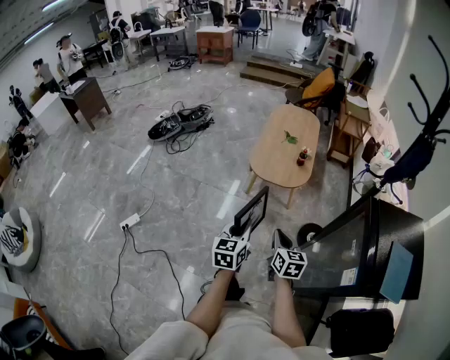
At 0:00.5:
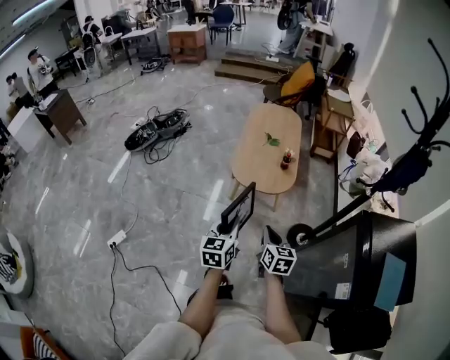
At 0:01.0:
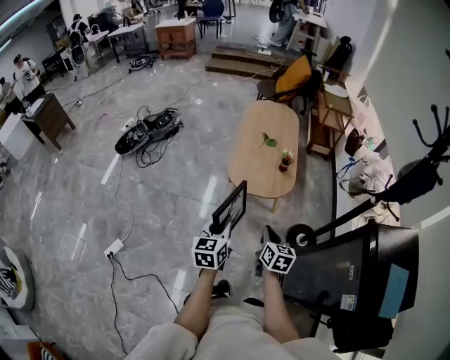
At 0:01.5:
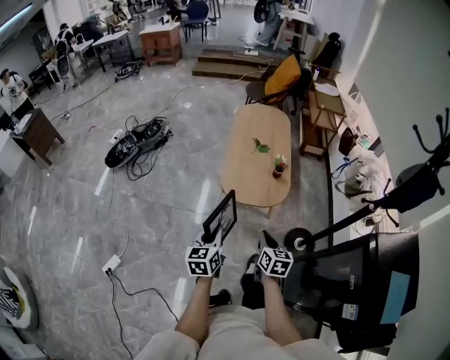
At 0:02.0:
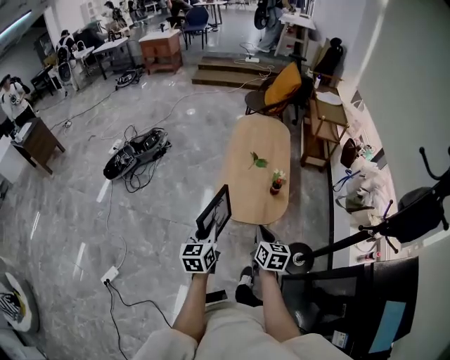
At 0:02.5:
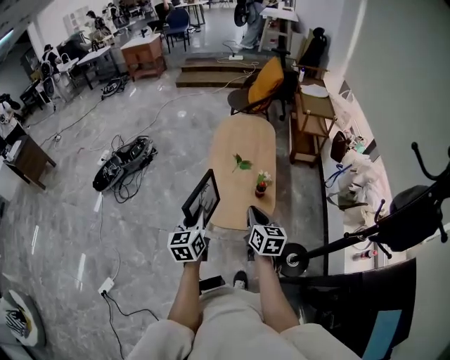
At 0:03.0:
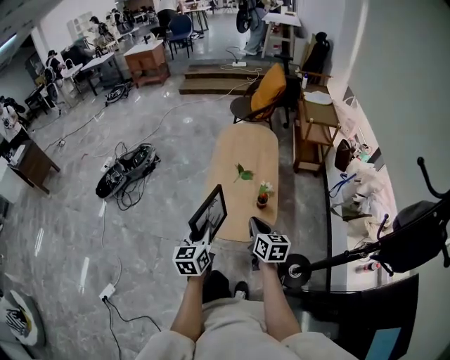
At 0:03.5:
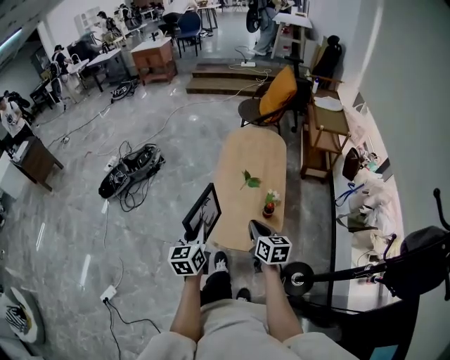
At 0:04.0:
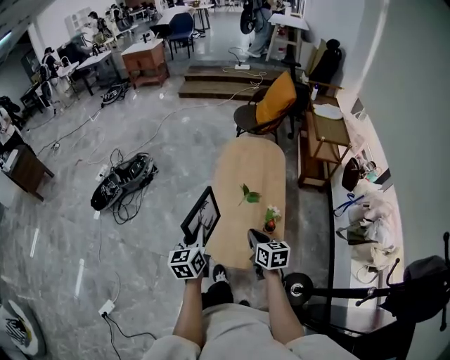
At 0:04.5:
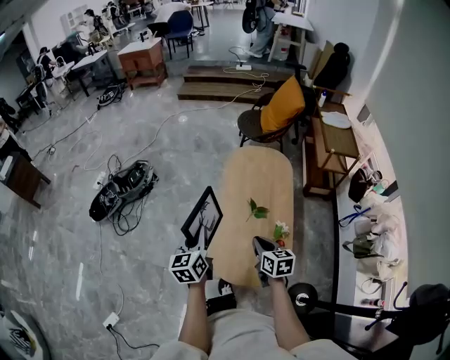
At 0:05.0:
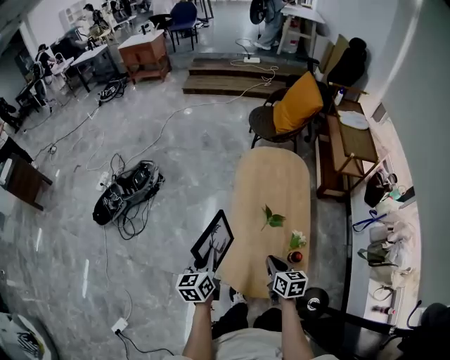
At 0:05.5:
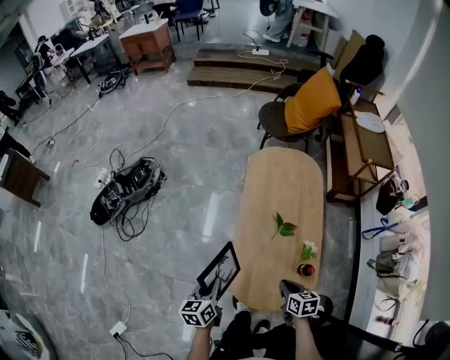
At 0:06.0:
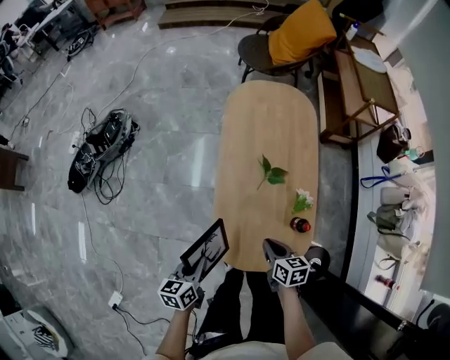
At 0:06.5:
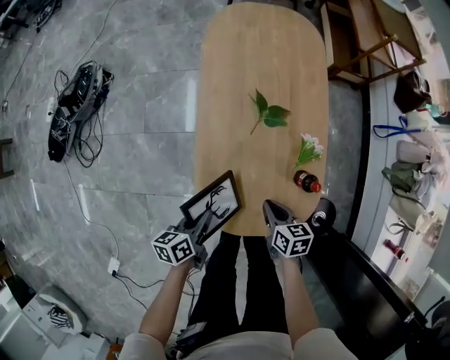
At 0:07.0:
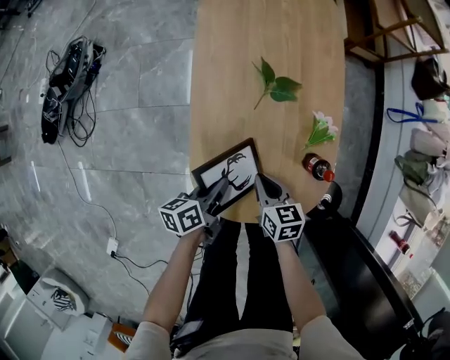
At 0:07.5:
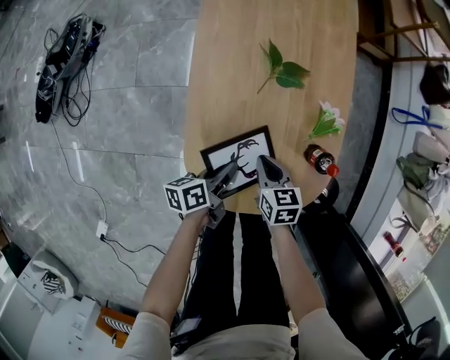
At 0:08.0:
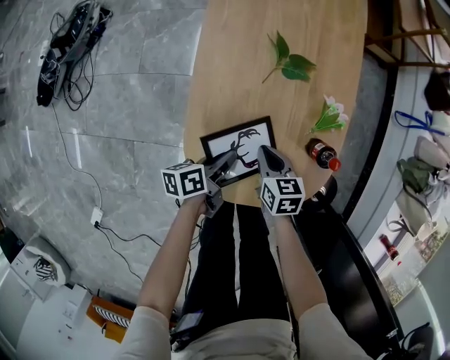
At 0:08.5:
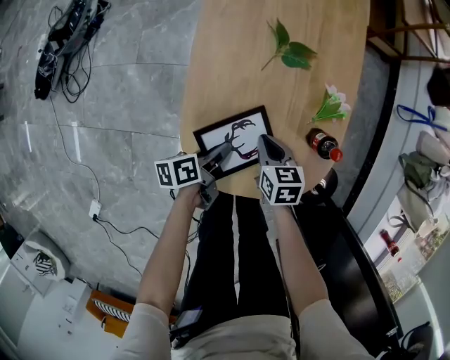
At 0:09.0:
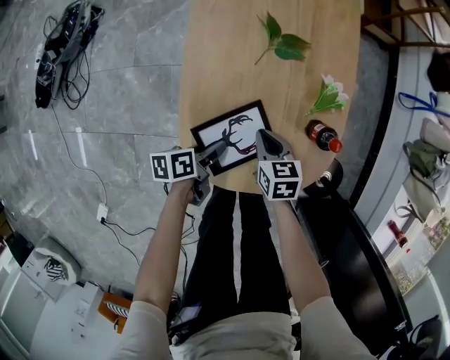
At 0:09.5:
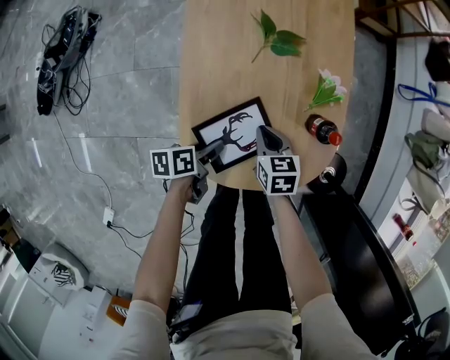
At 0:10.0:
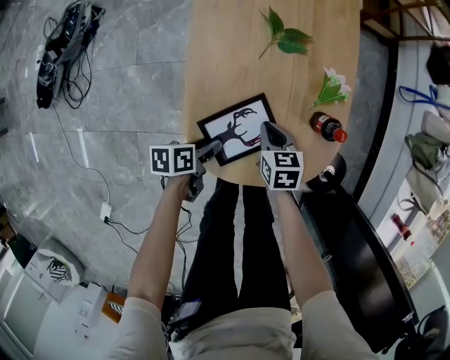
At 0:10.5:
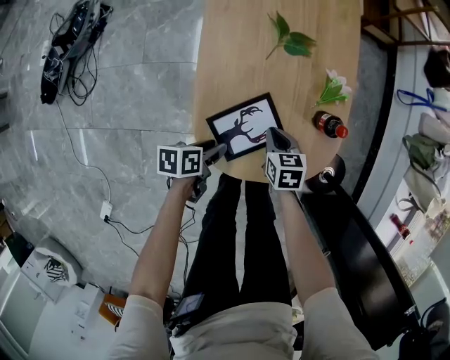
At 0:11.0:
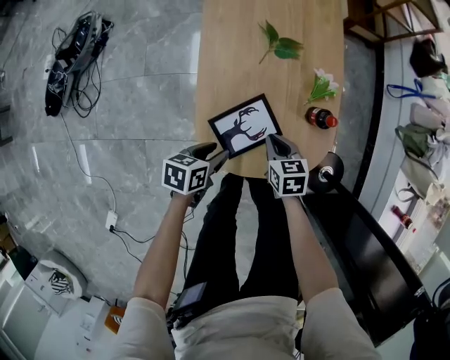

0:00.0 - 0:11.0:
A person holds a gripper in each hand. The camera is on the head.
0:00.0 - 0:02.0: The grippers both shift forward by roughly 40 cm.
0:02.0 - 0:03.5: Both grippers travel together forward, roughly 20 cm.
0:03.5 - 0:05.5: Both grippers travel together forward and downward, roughly 30 cm. The right gripper rotates roughly 30 degrees; the left gripper rotates about 20 degrees.
0:05.5 - 0:07.5: The left gripper travels downward and to the right by about 40 cm, and turns by about 40 degrees. The right gripper moves downward, approximately 30 cm.
0:07.5 - 0:09.0: The left gripper opens up.
0:09.0 - 0:11.0: Both grippers travel together upward and backward, approximately 10 cm. The left gripper swivels about 30 degrees.

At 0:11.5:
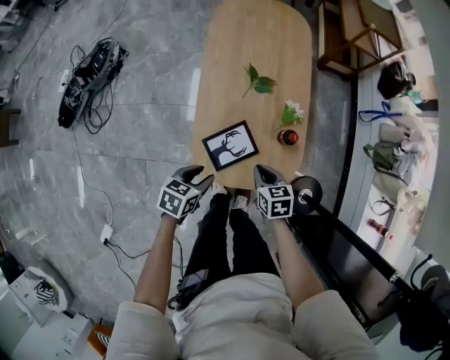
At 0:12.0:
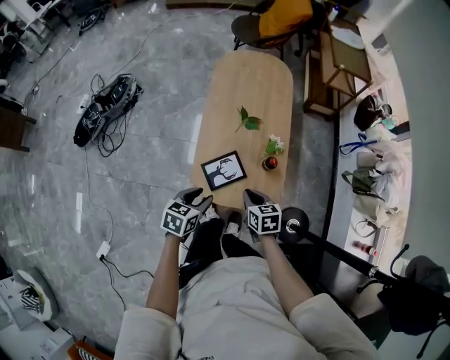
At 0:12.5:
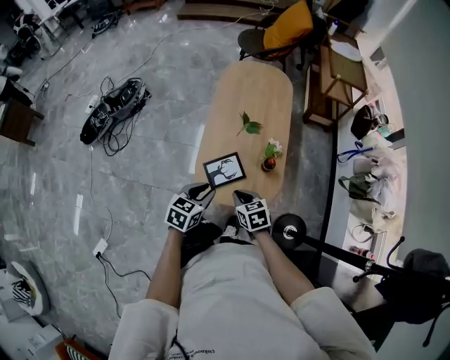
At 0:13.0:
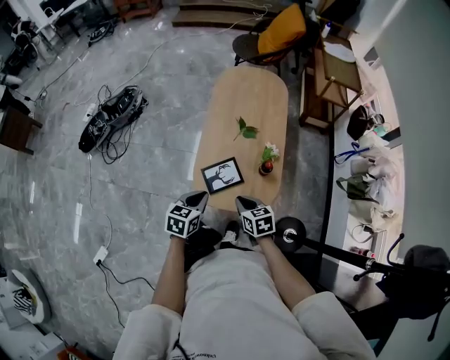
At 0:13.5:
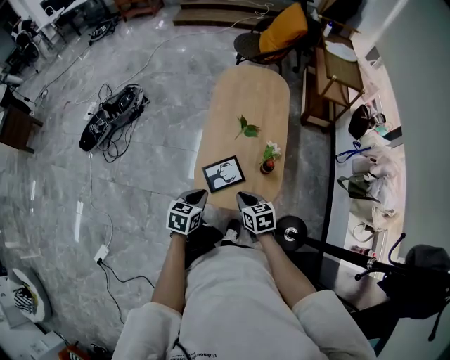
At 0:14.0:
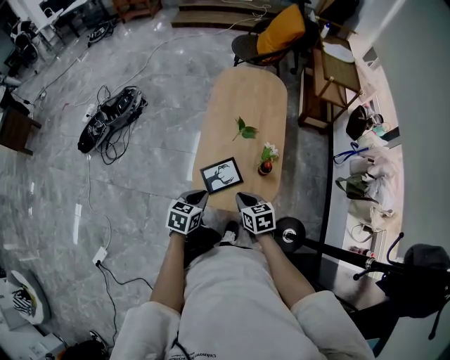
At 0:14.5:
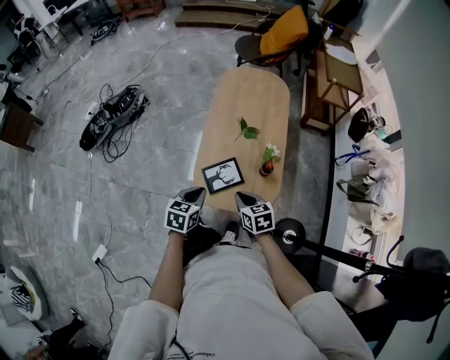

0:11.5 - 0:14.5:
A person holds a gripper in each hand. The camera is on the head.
0:11.5 - 0:13.0: Both grippers travel together upward and backward, about 20 cm. The left gripper rotates about 20 degrees, and closes up.
0:13.0 - 0:14.5: The grippers stay close to where they were, moving slightly.

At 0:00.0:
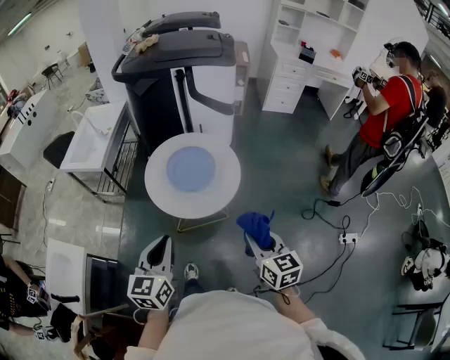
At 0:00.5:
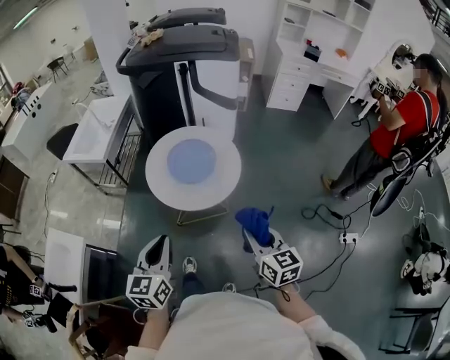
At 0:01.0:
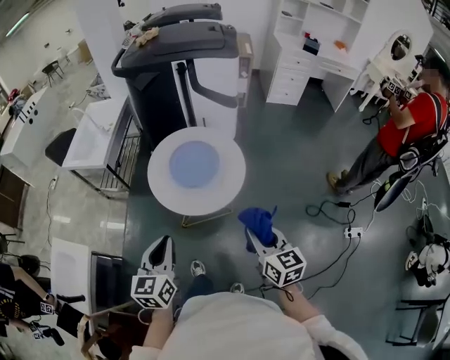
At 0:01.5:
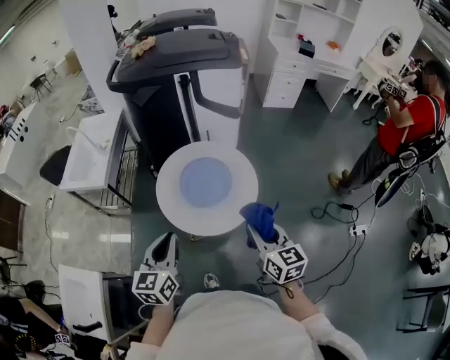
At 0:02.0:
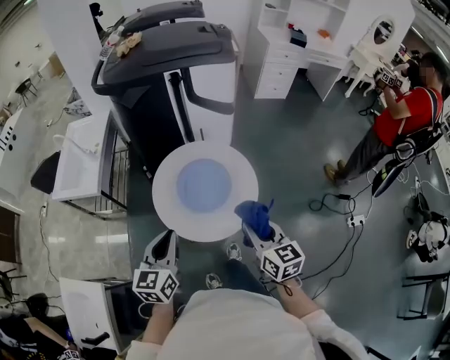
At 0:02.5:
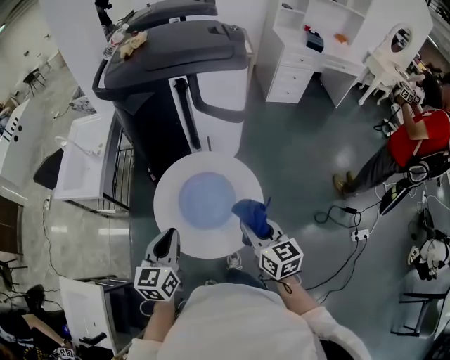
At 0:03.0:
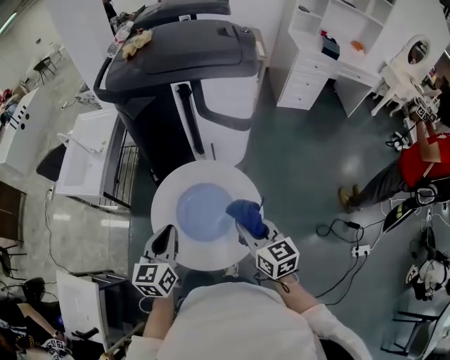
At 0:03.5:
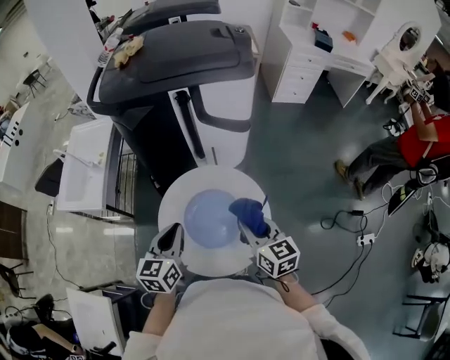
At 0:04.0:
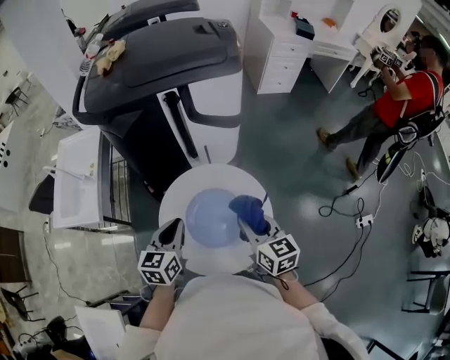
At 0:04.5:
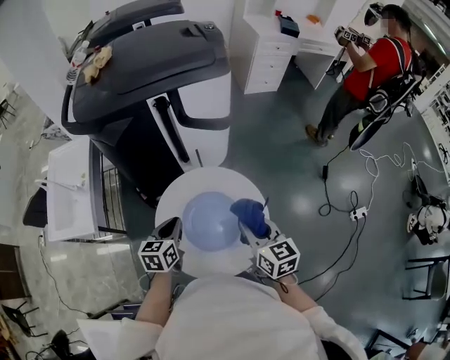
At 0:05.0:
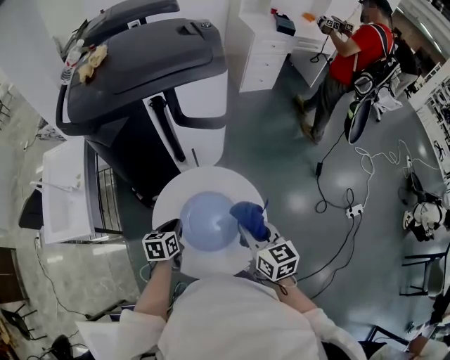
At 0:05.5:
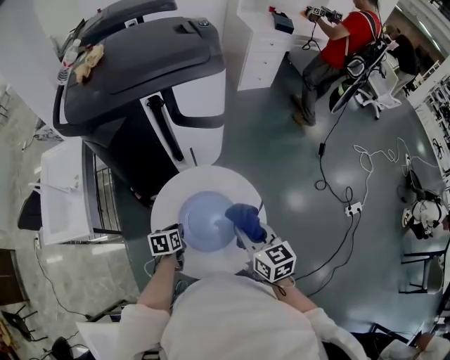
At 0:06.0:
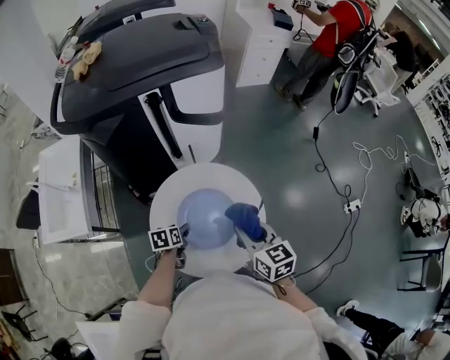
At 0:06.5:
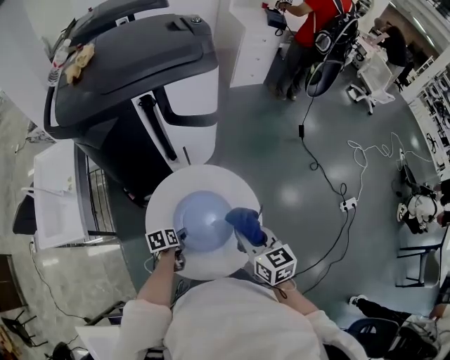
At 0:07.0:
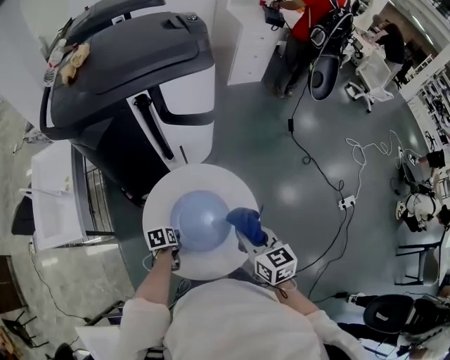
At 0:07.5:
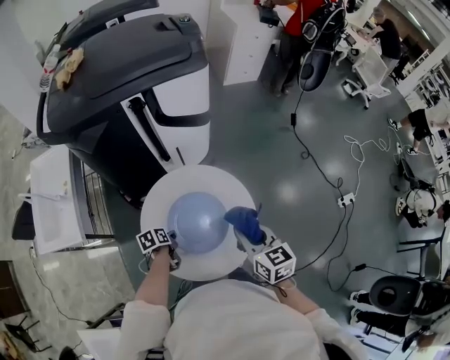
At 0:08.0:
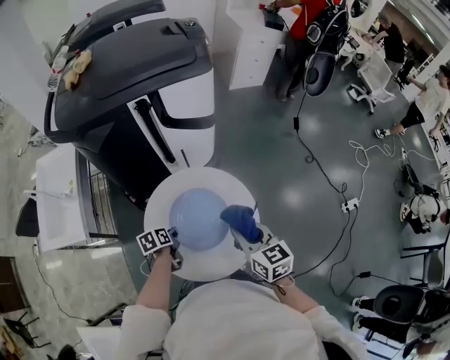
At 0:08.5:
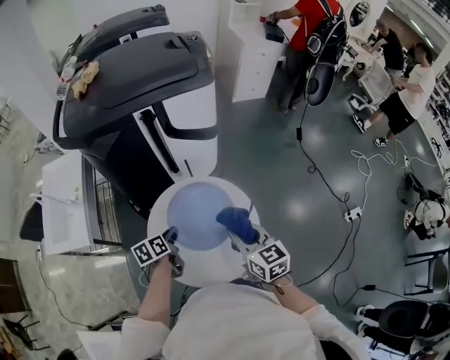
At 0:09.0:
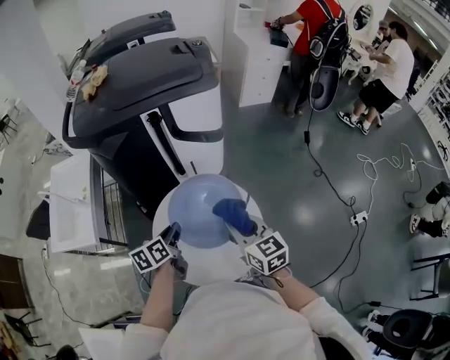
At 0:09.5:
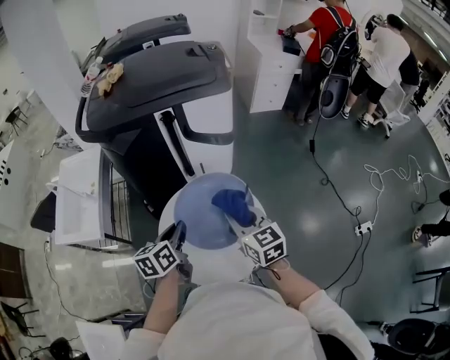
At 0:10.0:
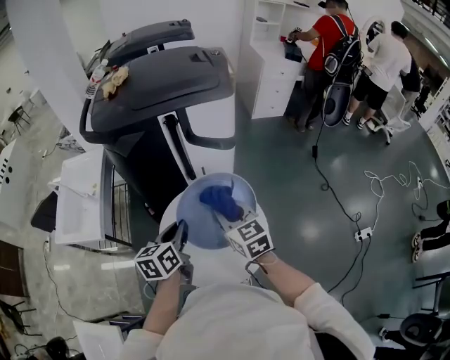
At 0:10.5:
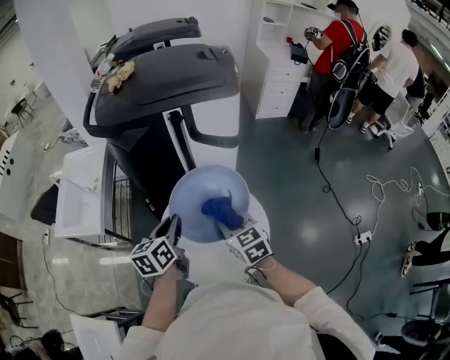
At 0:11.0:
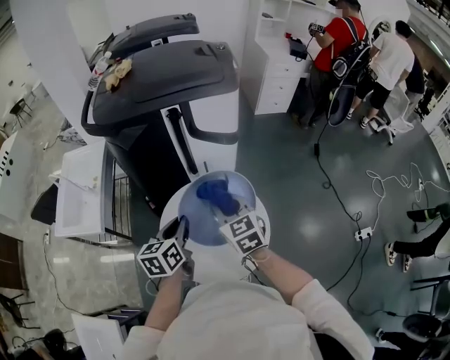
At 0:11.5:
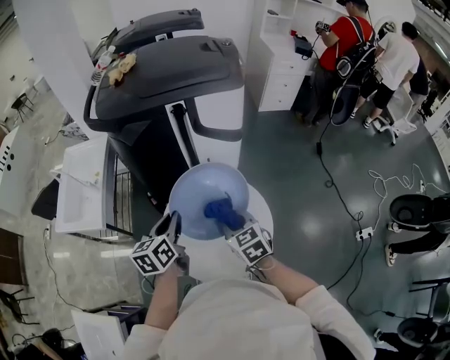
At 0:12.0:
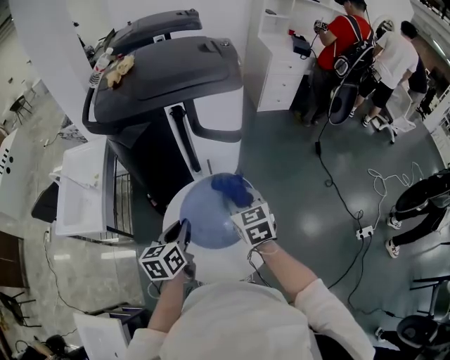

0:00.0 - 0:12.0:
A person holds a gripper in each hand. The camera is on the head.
0:00.0 - 0:02.0: The two grippers go roughly 20 cm forward and to the left.
0:02.0 - 0:04.0: The grippers both shift forward by roughly 20 cm.
0:04.0 - 0:06.0: The left gripper moves downward, approximately 20 cm, angles its fingers downward, by roughly 30 degrees, and opens its fingers.
0:06.0 - 0:08.0: The left gripper closes up.
0:08.0 - 0:10.0: The left gripper travels upward by approximately 25 cm, and changes its angle by roughly 40 degrees. The right gripper goes about 10 cm to the left, upward and forward.

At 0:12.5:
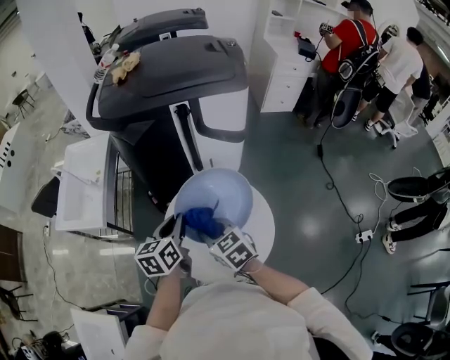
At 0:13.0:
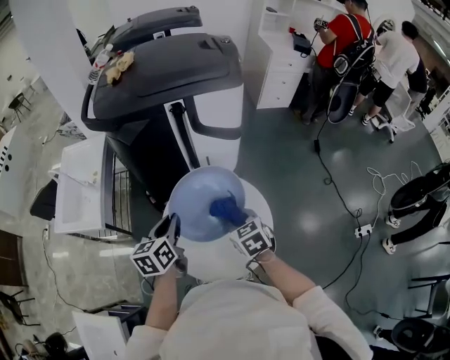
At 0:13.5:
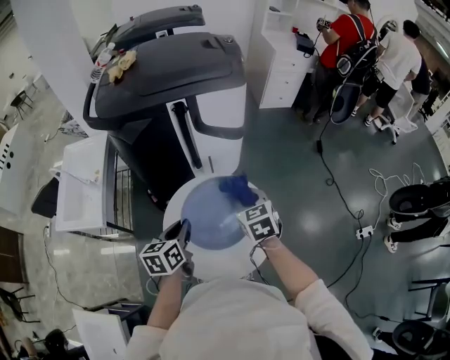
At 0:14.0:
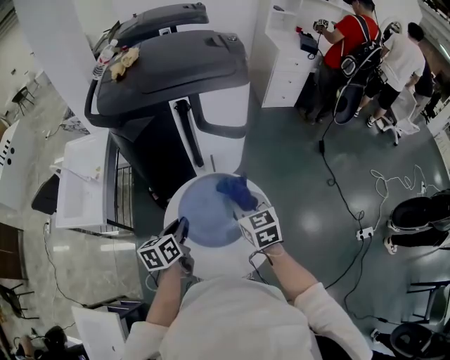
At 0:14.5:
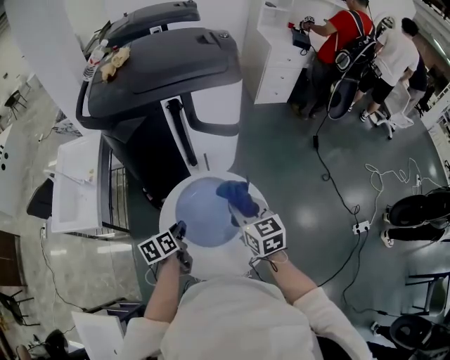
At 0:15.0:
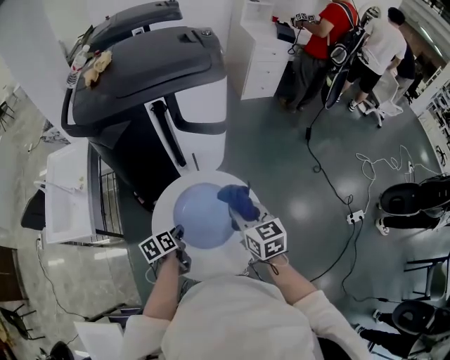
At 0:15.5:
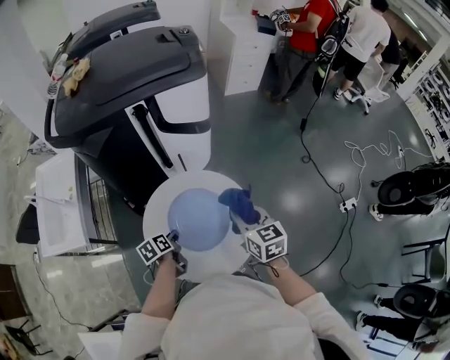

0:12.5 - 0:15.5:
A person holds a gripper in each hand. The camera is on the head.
0:12.5 - 0:14.0: The right gripper is displaced to the right and forward by about 15 cm, and turns by roughly 20 degrees, while the left gripper heads downward, covering roughly 5 cm.
0:14.0 - 0:15.5: The left gripper shifts some 15 cm downward, and turns by approximately 20 degrees. The right gripper shifts roughly 10 cm to the right.
